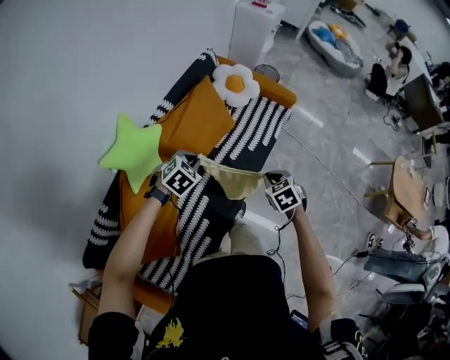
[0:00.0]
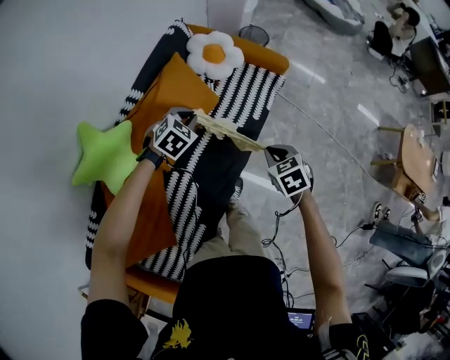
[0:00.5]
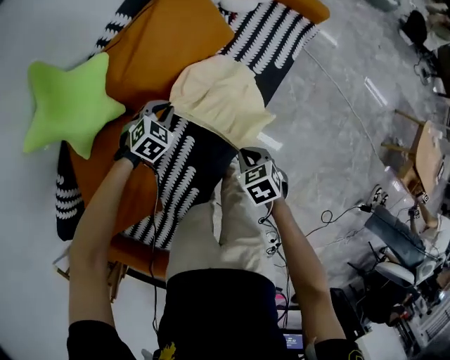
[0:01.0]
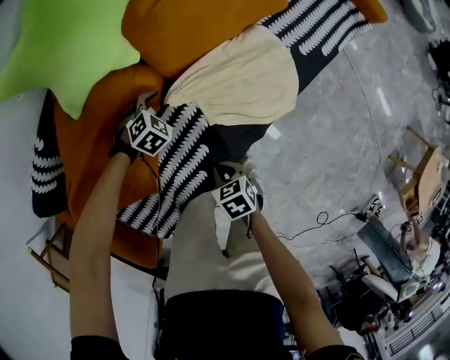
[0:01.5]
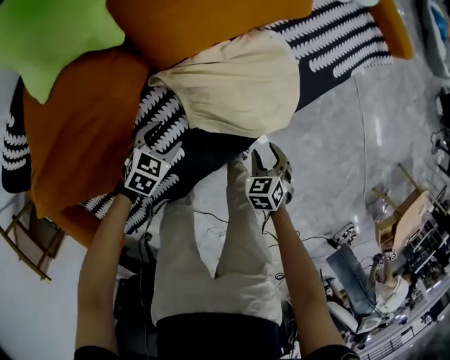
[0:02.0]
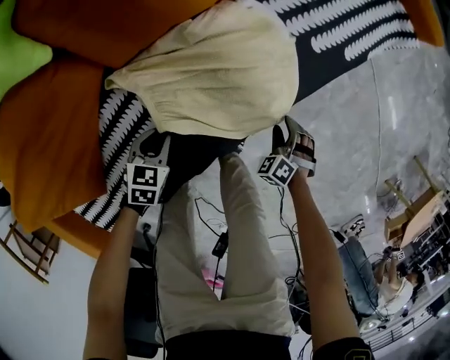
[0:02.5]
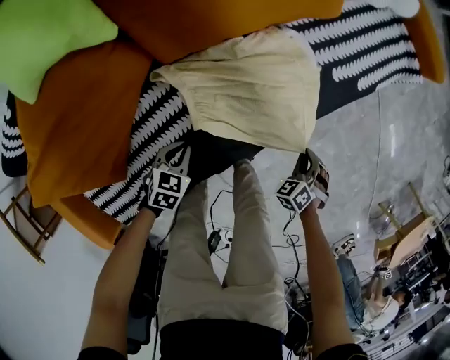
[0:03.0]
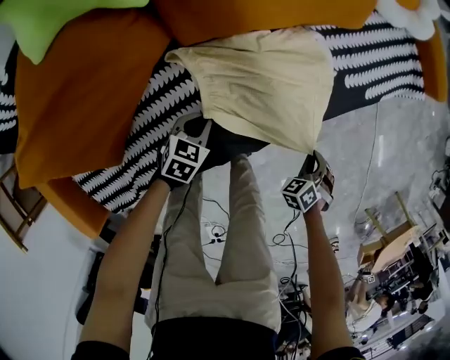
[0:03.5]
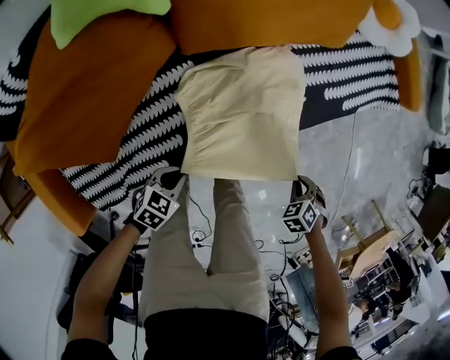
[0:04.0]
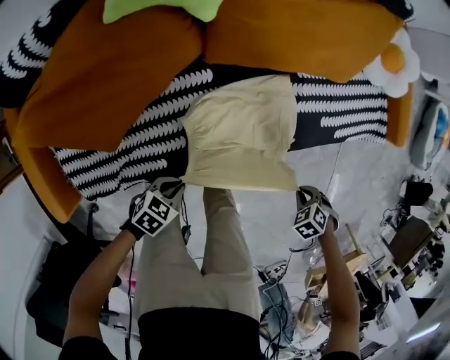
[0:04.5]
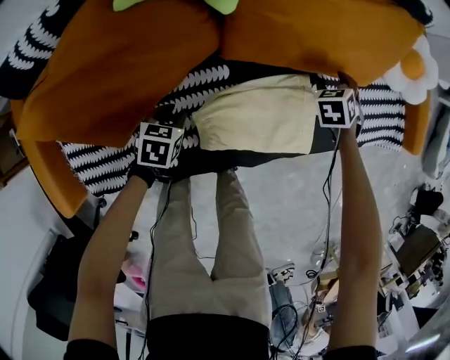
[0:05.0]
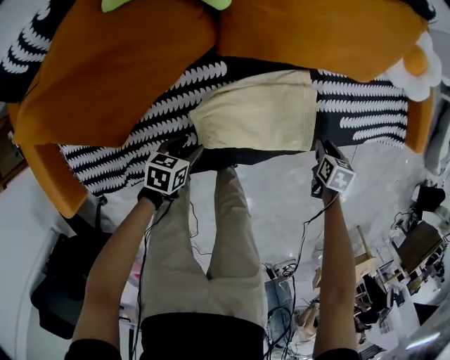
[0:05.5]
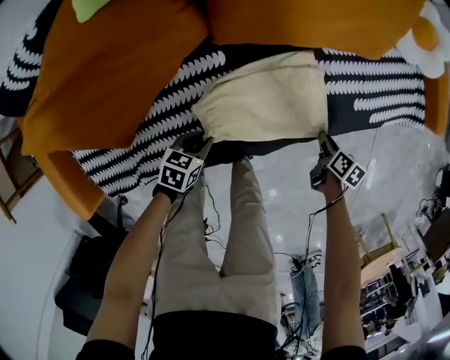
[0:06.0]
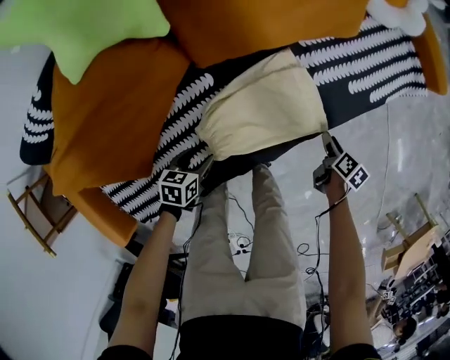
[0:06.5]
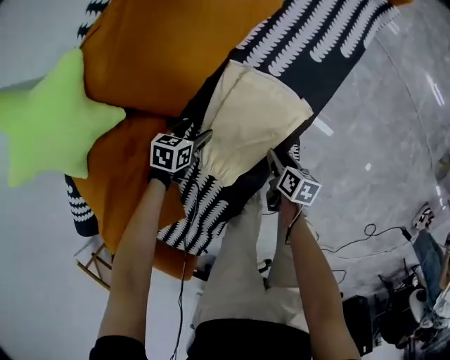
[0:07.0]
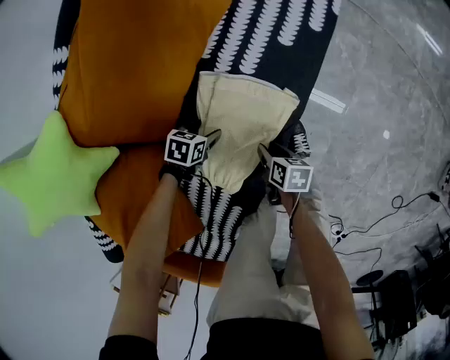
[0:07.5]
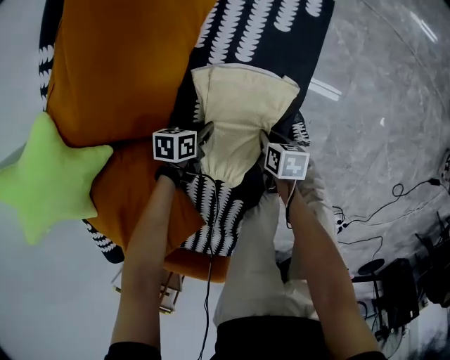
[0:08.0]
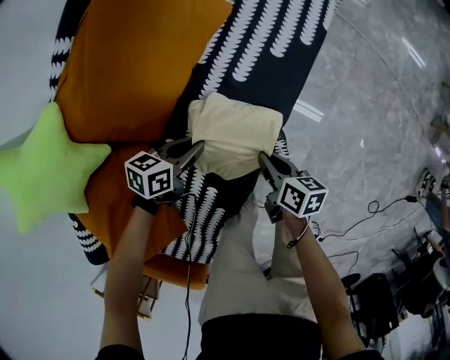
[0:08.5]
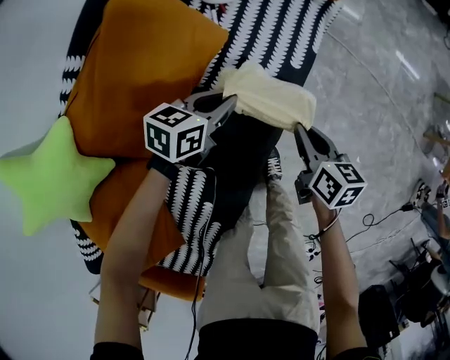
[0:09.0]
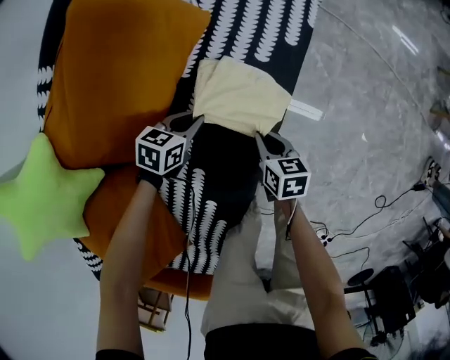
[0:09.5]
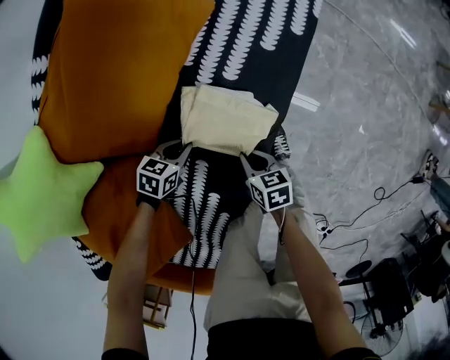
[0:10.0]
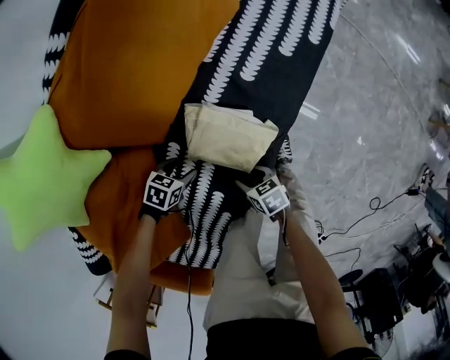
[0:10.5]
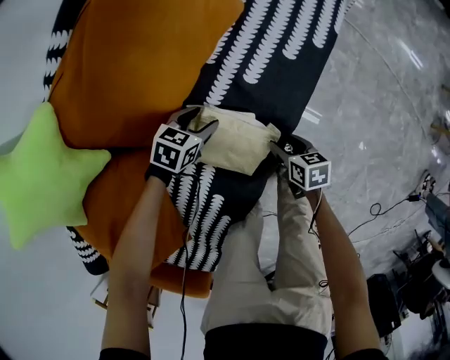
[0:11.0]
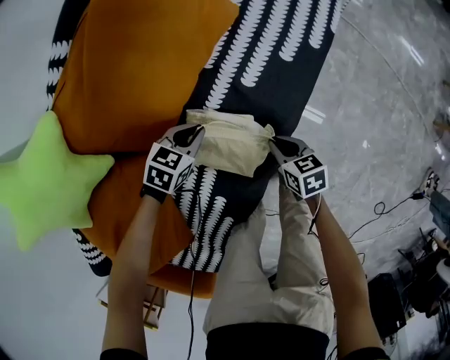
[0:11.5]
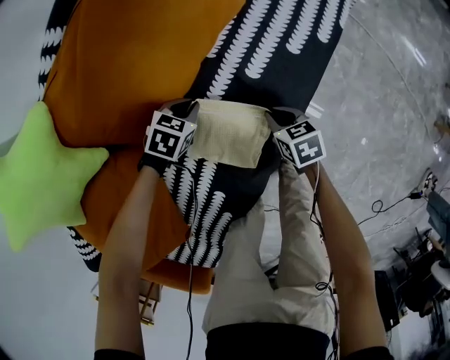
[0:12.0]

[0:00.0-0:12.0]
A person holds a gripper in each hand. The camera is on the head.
0:00.0 to 0:02.0: The grippers both shift downward by roughly 50 cm. The left gripper changes its angle by roughly 30 degrees, and opens.
0:02.0 to 0:04.0: The right gripper reaches some 20 cm downward, then returns, and rotates some 40 degrees. The left gripper moves about 15 cm downward and comes back, and closes.
0:04.0 to 0:06.0: The right gripper rolls clockwise, seen from behind, by some 70 degrees; the left gripper turns by approximately 20 degrees.
0:06.0 to 0:08.0: The right gripper moves some 10 cm, and rotates approximately 40 degrees, while the left gripper changes place by roughly 25 cm, turns by approximately 40 degrees, and opens and closes again.
0:08.0 to 0:10.0: The right gripper goes upward and returns, approximately 25 cm each way, and changes its angle by some 20 degrees. The left gripper travels upward and back again, approximately 20 cm each way, and changes its angle by roughly 20 degrees.
0:10.0 to 0:12.0: The left gripper changes place by roughly 10 cm, and opens, then closes once more; the right gripper changes place by roughly 10 cm, and rotates some 20 degrees.

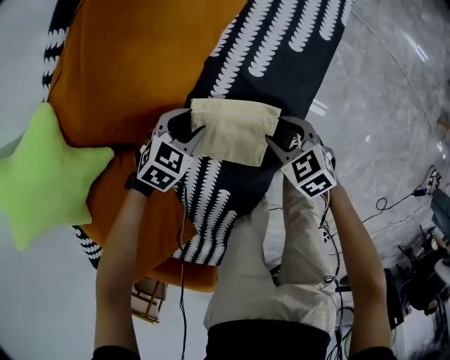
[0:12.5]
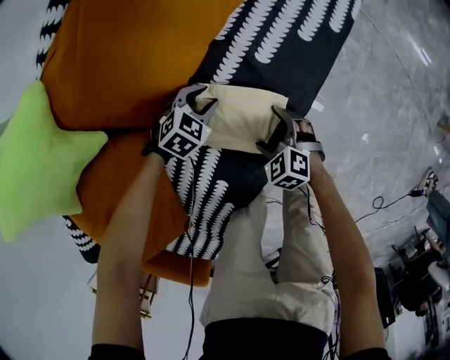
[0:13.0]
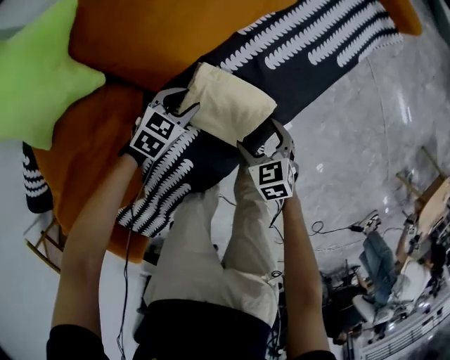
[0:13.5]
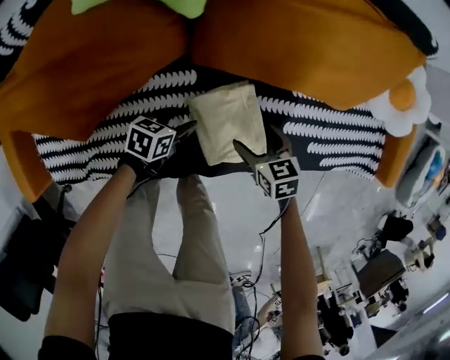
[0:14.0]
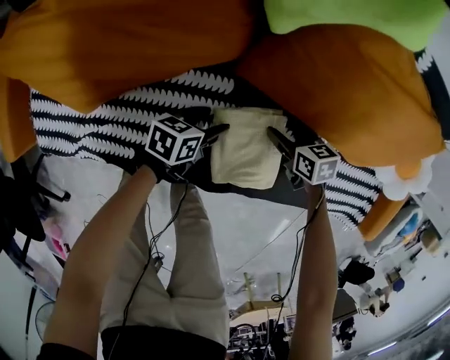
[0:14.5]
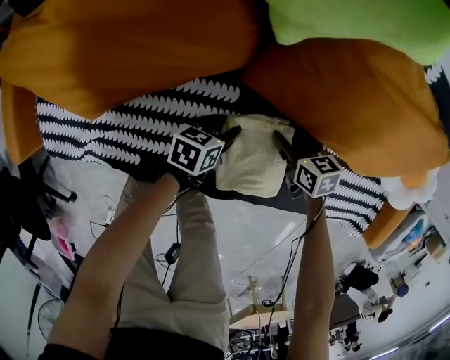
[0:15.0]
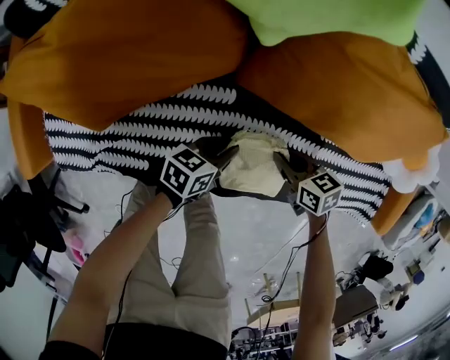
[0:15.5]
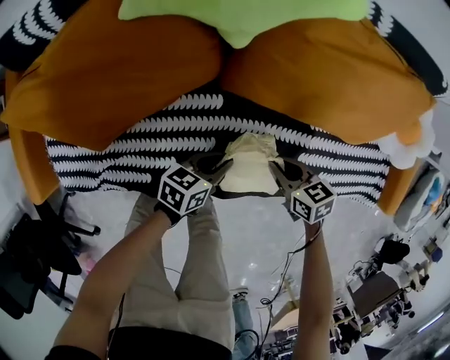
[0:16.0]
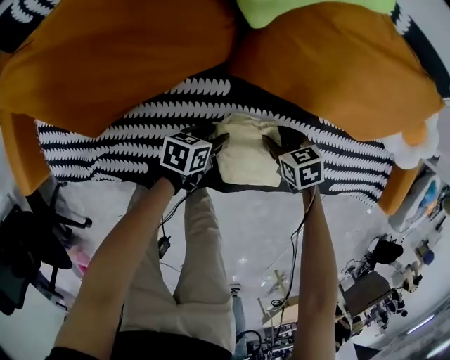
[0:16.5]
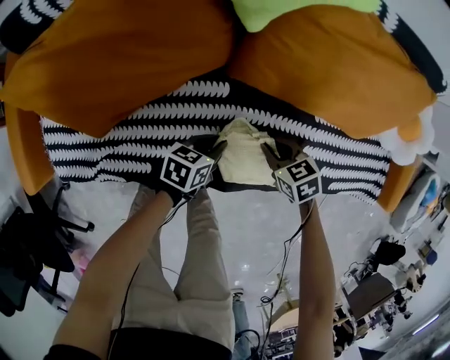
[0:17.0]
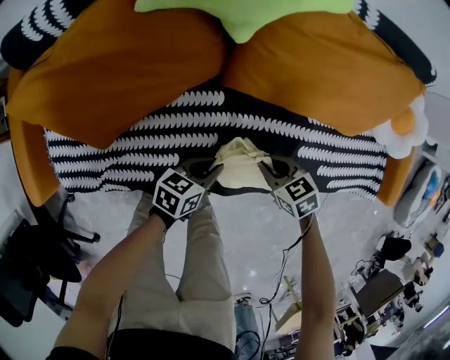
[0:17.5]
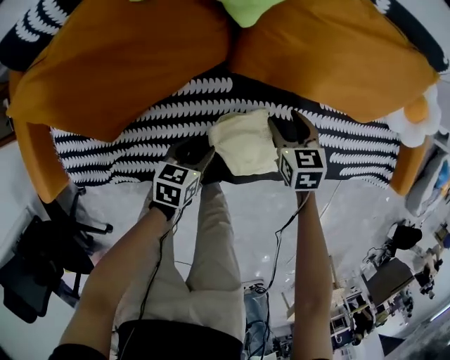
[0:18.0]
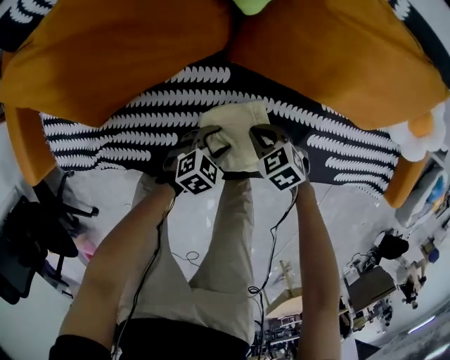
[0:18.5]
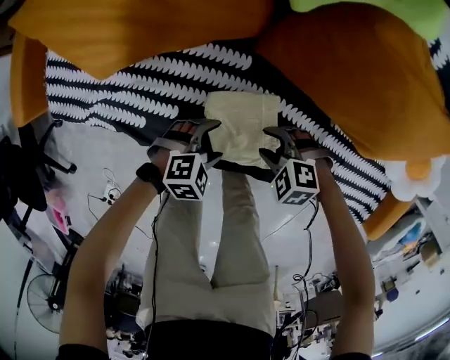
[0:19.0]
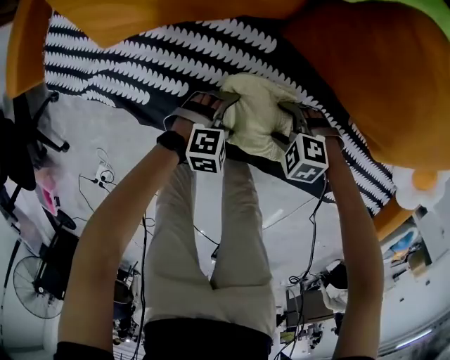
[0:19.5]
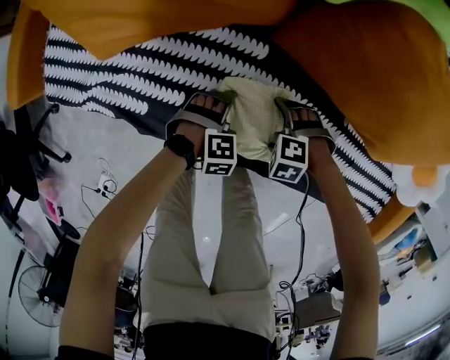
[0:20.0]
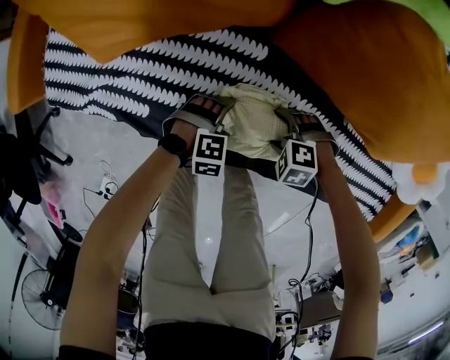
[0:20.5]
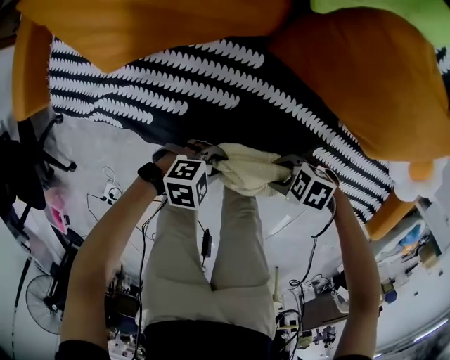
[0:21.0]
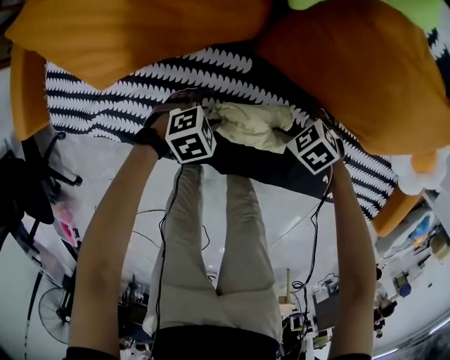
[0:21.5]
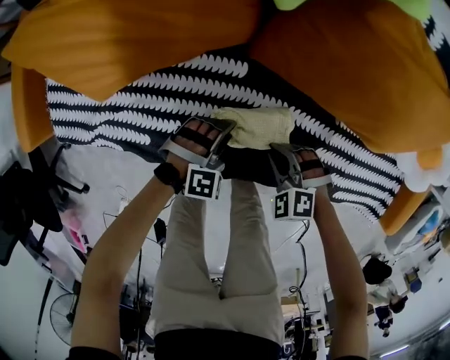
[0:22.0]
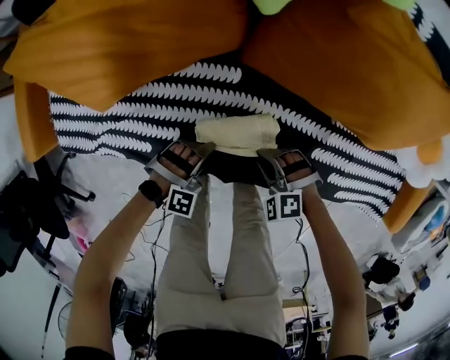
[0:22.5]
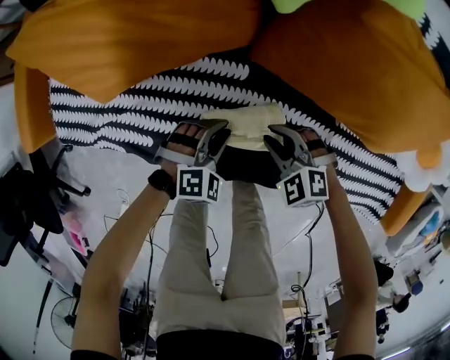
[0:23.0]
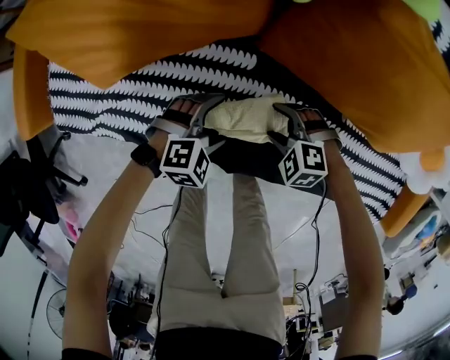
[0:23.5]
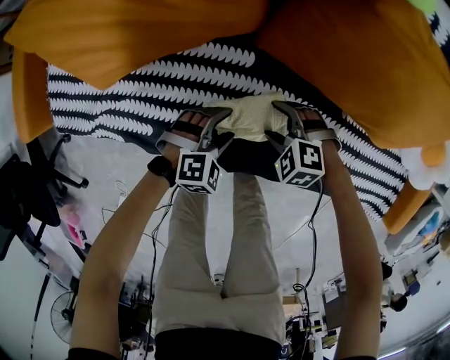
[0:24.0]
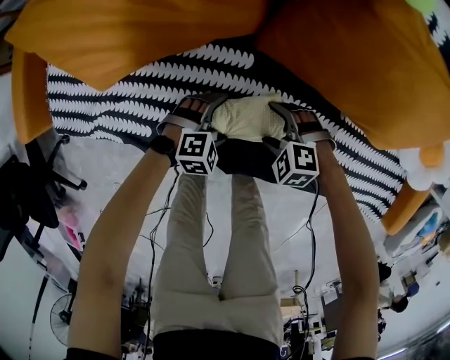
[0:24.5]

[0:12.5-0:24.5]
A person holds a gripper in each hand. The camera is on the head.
0:12.5 to 0:14.5: The left gripper goes up and down, approximately 10 cm each way, reversing 2 times, and rolls counterclockwise, seen from behind, by approximately 100 degrees. The right gripper goes up and down, about 10 cm each way, reversing 2 times, and swivels about 50 degrees.
0:14.5 to 0:16.5: The left gripper travels upward and back again, about 10 cm each way. The right gripper travels upward and back again, about 10 cm each way.
0:16.5 to 0:18.5: The right gripper goes upward and returns, approximately 10 cm each way, and turns by roughly 20 degrees; the left gripper moves approximately 10 cm upward and comes back, and rolls clockwise, seen from behind, by about 50 degrees.
0:18.5 to 0:20.5: The left gripper changes place by roughly 5 cm, rotates roughly 30 degrees, and opens, while the right gripper ends up some 5 cm from where it was, twists about 50 degrees counterclockwise, seen from behind, and opens its fingers.
0:20.5 to 0:22.5: The right gripper swings up and down, approximately 10 cm each way, with 2 reversals, turns by some 20 degrees, and closes up. The left gripper changes its angle by some 30 degrees, and closes its fingers.
0:22.5 to 0:24.5: The left gripper changes place by approximately 10 cm, turns by roughly 30 degrees, and opens its fingers. Meanwhile the right gripper opens up.

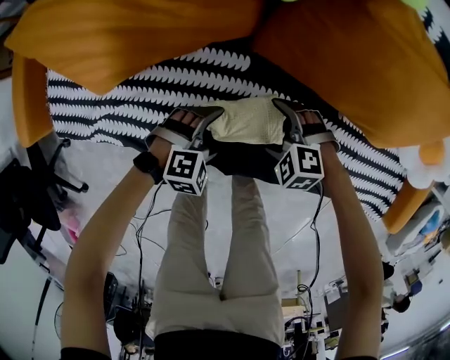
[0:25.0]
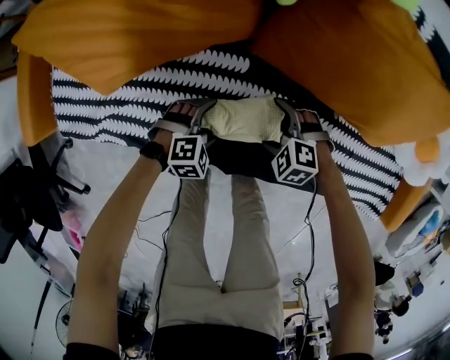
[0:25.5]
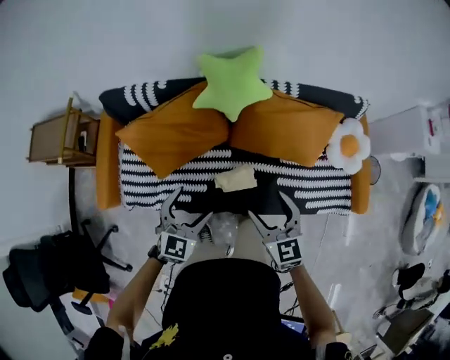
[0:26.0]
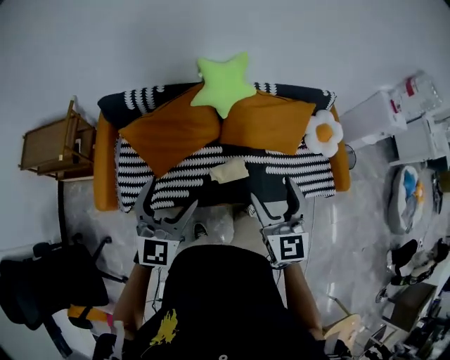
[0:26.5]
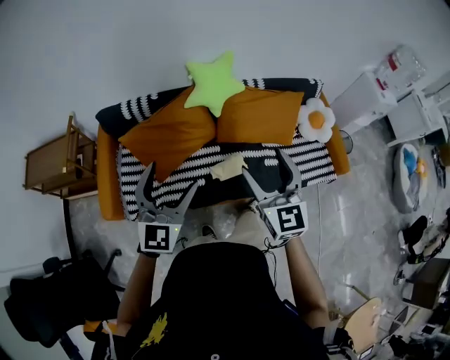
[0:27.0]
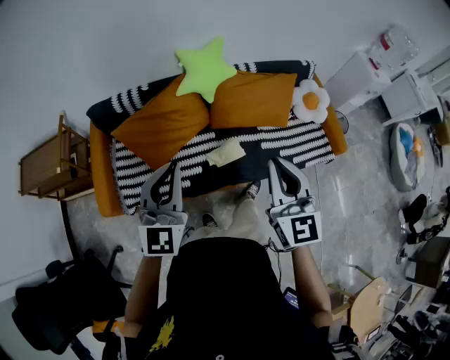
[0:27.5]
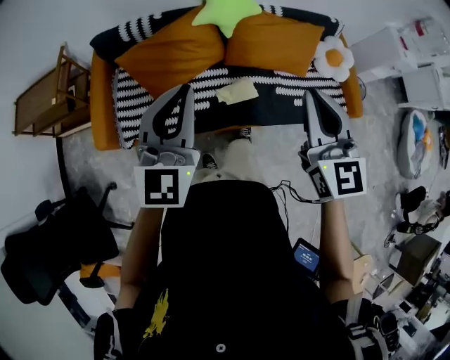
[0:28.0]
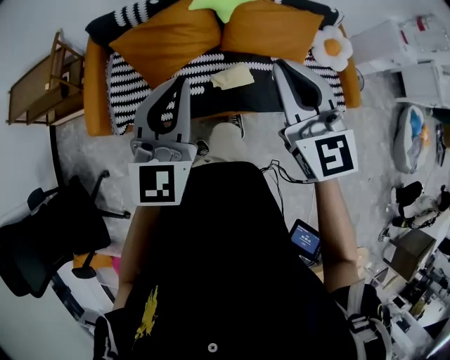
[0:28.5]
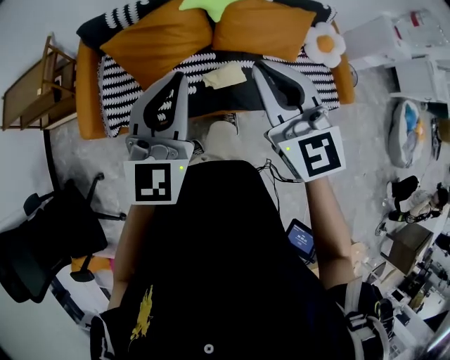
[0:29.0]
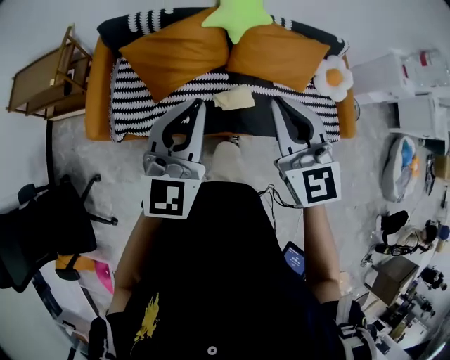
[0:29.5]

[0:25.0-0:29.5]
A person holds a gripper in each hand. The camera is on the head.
0:25.0 to 0:27.0: The two grippers go approximately 80 cm upward. The left gripper angles its fingers upward, by some 60 degrees, while the right gripper tips its fingers upward by roughly 60 degrees.
0:27.0 to 0:29.5: The right gripper heads to the left and backward, covering about 10 cm, and closes. The left gripper heads backward, covering approximately 5 cm, and closes up.
